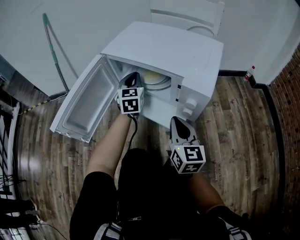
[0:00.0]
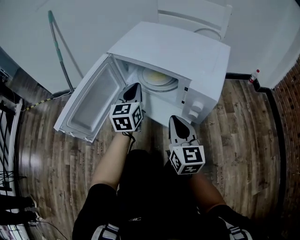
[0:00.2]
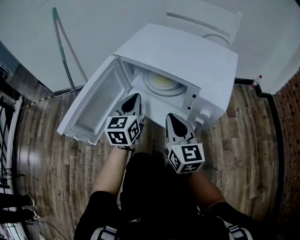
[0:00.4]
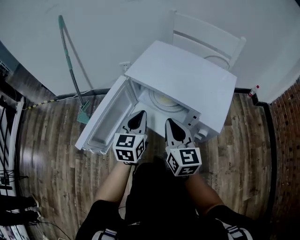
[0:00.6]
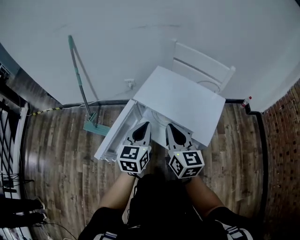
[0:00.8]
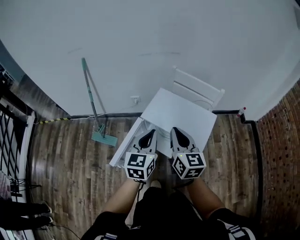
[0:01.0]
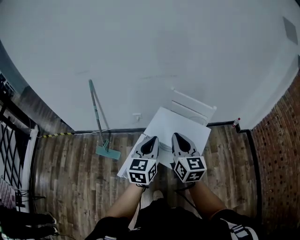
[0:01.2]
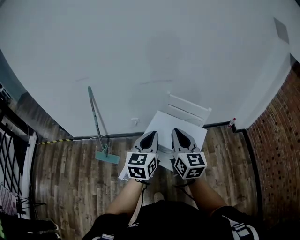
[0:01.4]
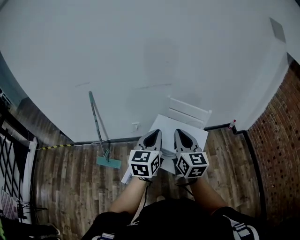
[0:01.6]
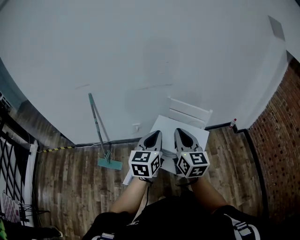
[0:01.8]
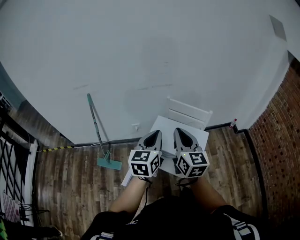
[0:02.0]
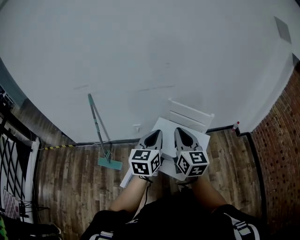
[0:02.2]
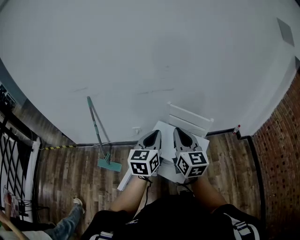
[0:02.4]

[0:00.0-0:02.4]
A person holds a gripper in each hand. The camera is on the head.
0:00.0 to 0:01.2: The right gripper moves upward, approximately 50 cm.
0:01.2 to 0:02.4: The right gripper shifts by approximately 10 cm.

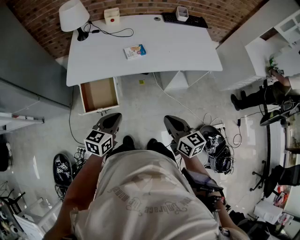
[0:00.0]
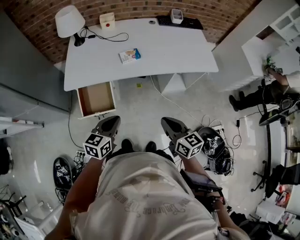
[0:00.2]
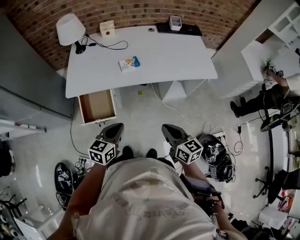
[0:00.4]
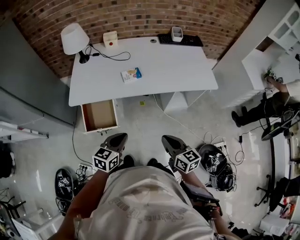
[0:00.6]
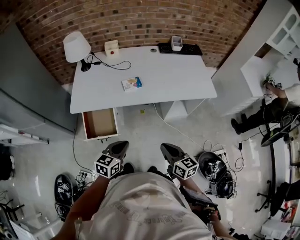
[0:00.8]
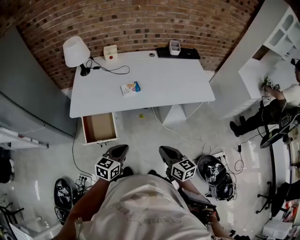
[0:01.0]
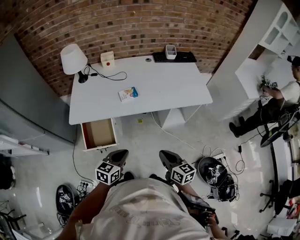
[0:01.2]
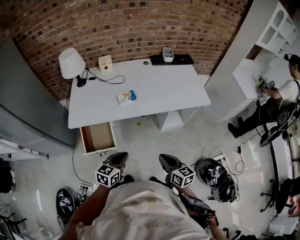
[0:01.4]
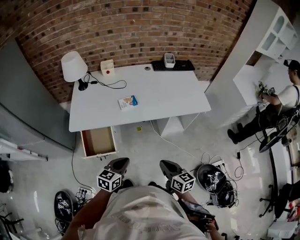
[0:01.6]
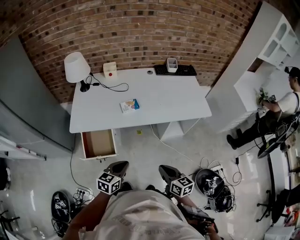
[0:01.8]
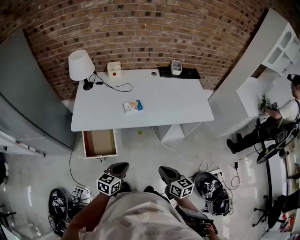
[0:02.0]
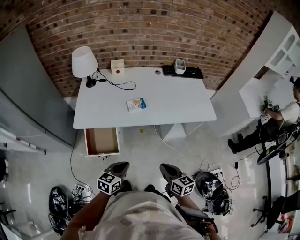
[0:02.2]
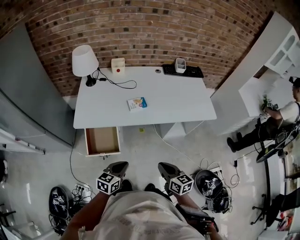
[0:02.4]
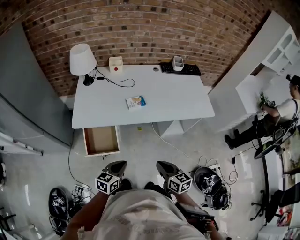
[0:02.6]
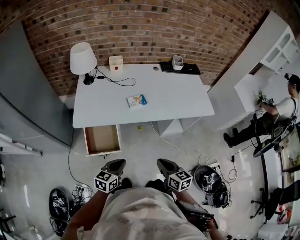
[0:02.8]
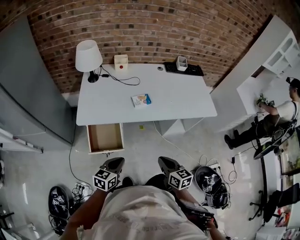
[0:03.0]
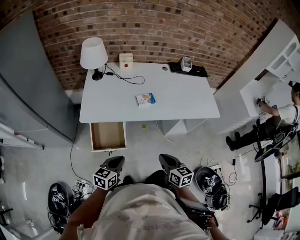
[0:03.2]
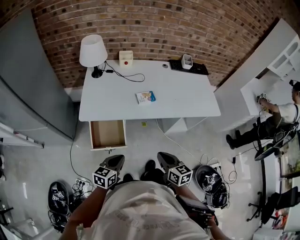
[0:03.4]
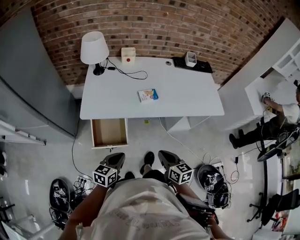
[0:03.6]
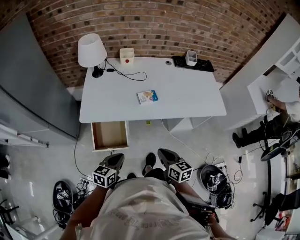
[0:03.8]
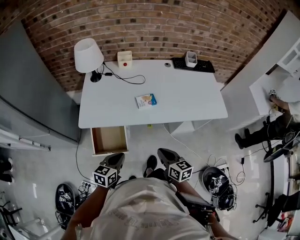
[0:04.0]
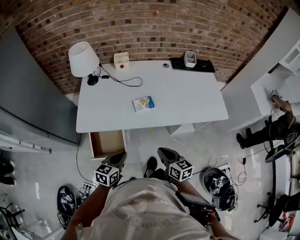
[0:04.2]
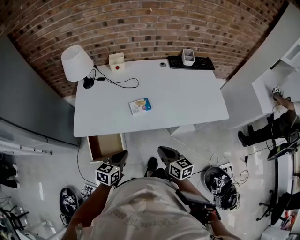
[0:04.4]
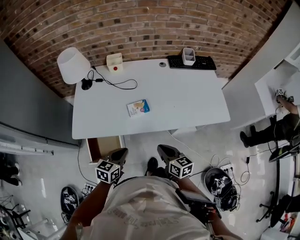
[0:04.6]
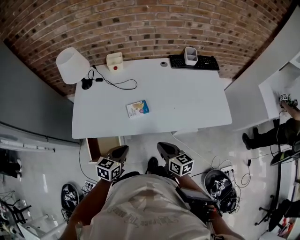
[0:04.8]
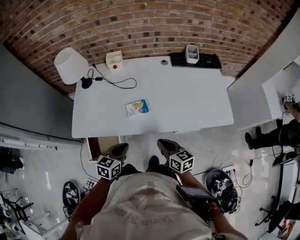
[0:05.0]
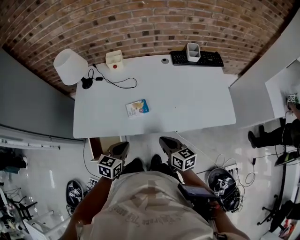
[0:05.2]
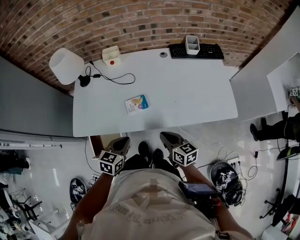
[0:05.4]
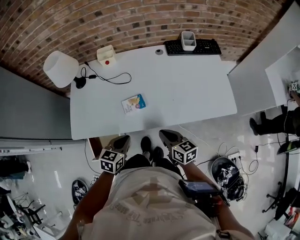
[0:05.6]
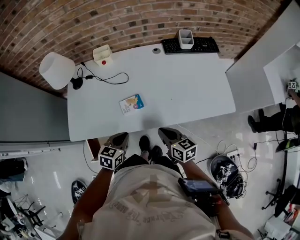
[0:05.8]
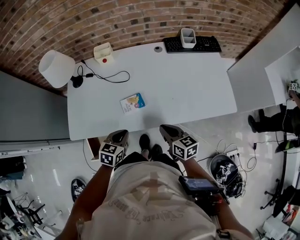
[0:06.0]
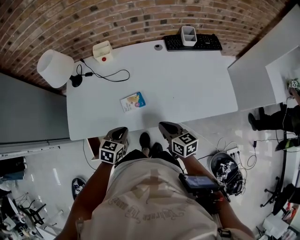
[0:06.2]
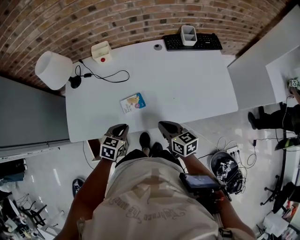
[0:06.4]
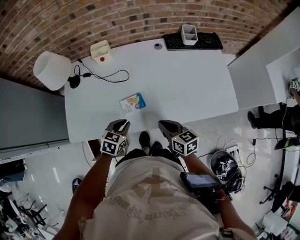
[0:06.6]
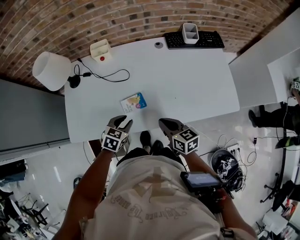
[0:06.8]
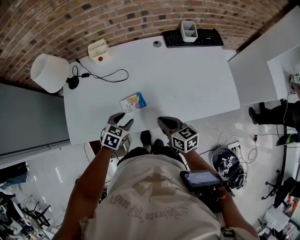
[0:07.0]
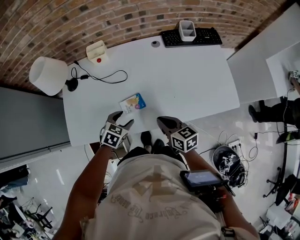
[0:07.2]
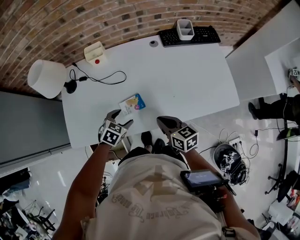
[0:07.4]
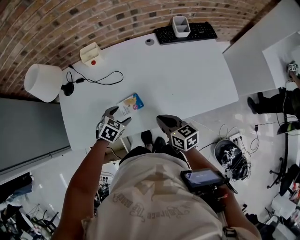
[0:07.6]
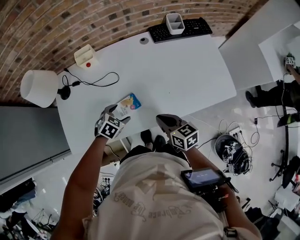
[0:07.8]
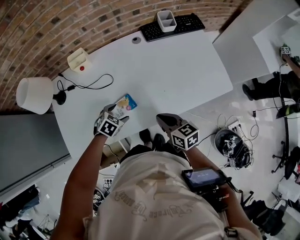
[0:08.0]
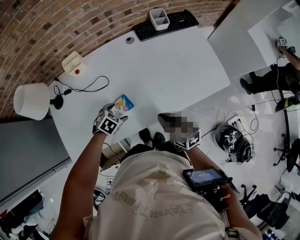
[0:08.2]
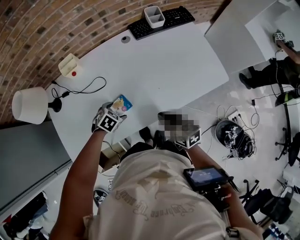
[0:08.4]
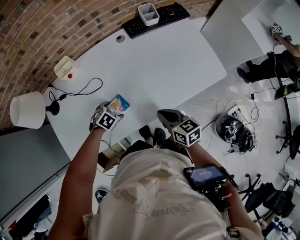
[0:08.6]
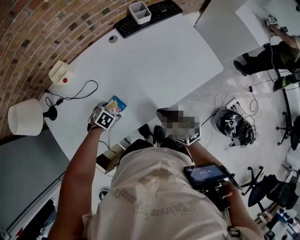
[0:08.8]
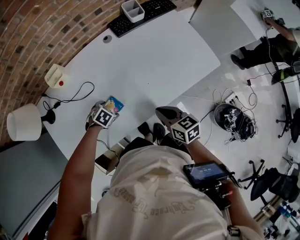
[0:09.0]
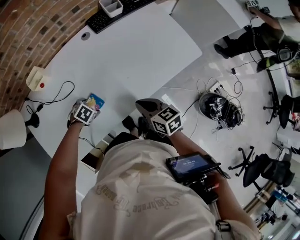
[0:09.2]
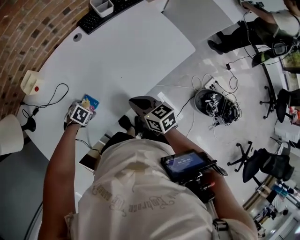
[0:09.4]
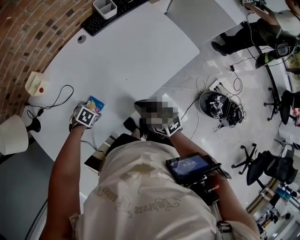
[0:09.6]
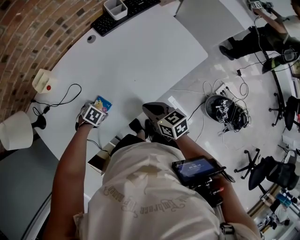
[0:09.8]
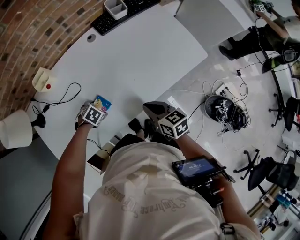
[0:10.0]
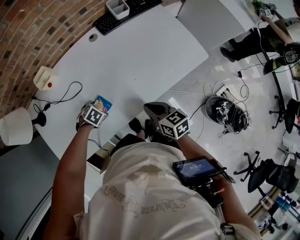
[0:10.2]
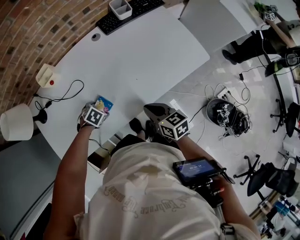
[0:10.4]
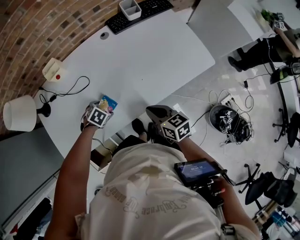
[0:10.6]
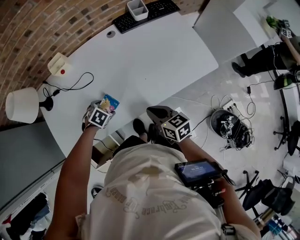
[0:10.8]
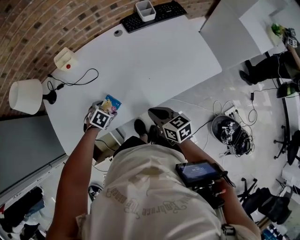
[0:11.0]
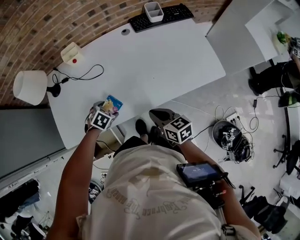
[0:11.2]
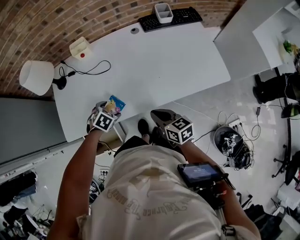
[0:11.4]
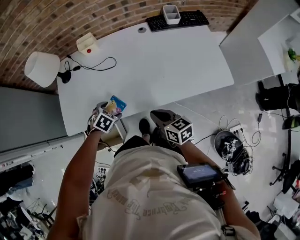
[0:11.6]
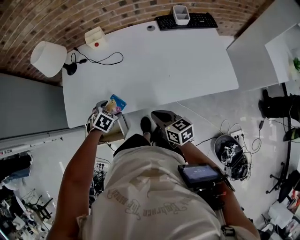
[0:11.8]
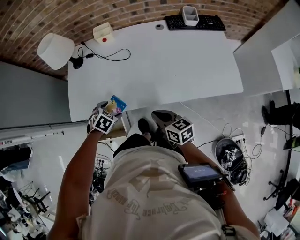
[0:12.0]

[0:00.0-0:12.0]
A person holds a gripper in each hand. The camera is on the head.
0:00.0 to 0:01.6: The right gripper moves to the right, roughly 5 cm. The left gripper travels to the right by roughly 10 cm.
0:01.6 to 0:03.0: Both grippers move to the left, roughly 10 cm.
0:03.0 to 0:04.4: Both grippers move forward, about 15 cm.
0:04.4 to 0:06.0: Both grippers travel together forward and to the right, roughly 15 cm.
0:06.0 to 0:07.6: The left gripper goes some 15 cm forward and downward, changes its angle by some 30 degrees, and opens, while the right gripper travels forward by about 5 cm.
0:07.6 to 0:09.0: The right gripper ends up approximately 10 cm from where it was. Meanwhile the left gripper shifts roughly 10 cm downward, and rotates some 30 degrees.
0:09.0 to 0:10.4: The grippers move only a little.
0:10.4 to 0:12.0: The right gripper shifts by about 15 cm, and changes its angle by about 30 degrees. Meanwhile the left gripper ends up roughly 20 cm from where it was, and swivels about 30 degrees.

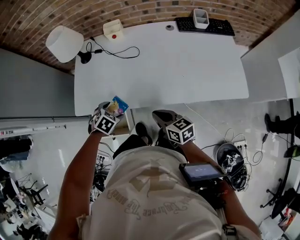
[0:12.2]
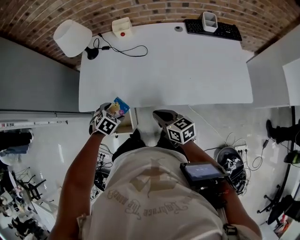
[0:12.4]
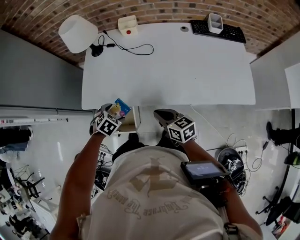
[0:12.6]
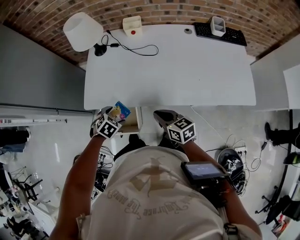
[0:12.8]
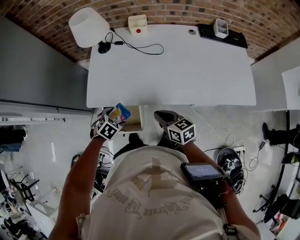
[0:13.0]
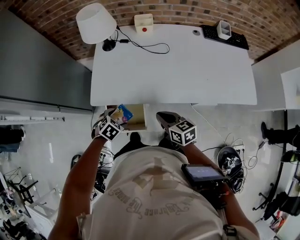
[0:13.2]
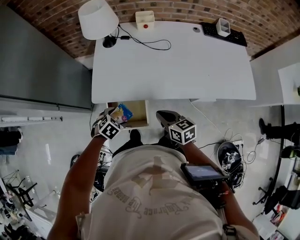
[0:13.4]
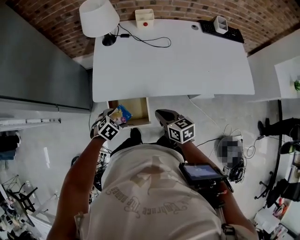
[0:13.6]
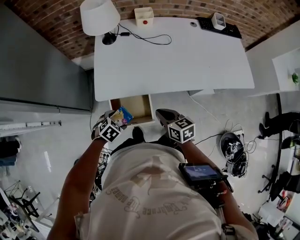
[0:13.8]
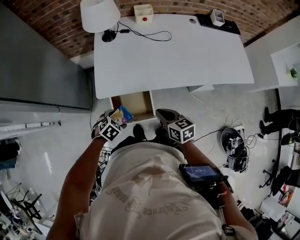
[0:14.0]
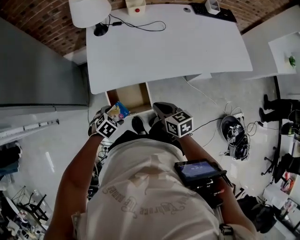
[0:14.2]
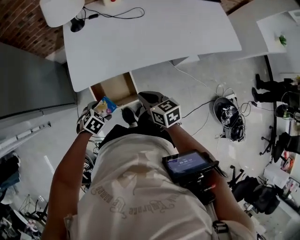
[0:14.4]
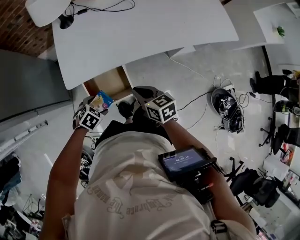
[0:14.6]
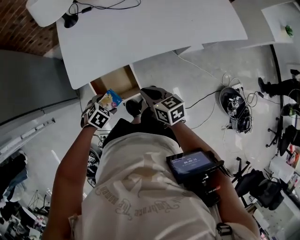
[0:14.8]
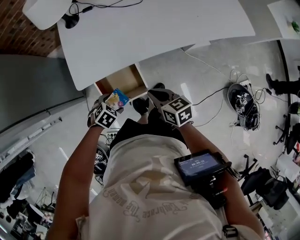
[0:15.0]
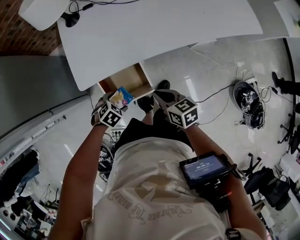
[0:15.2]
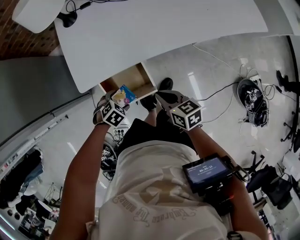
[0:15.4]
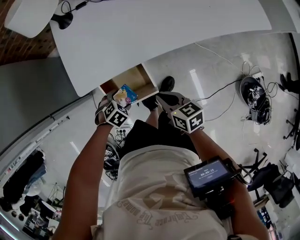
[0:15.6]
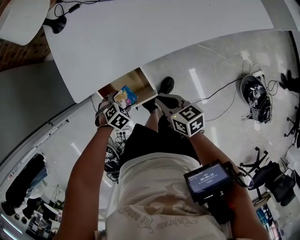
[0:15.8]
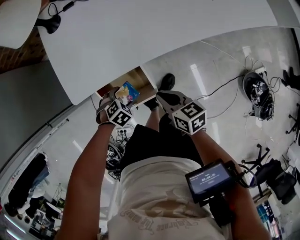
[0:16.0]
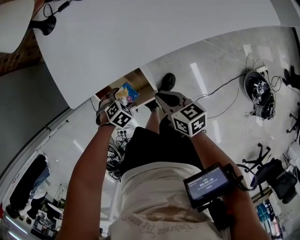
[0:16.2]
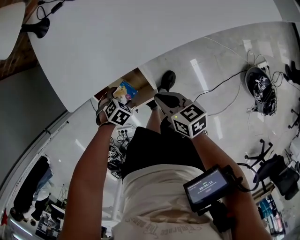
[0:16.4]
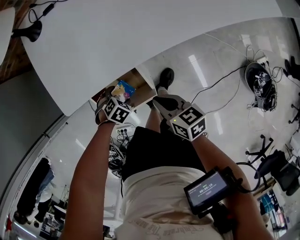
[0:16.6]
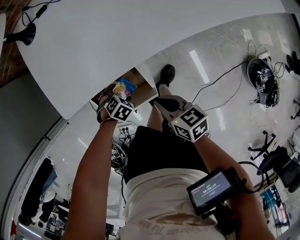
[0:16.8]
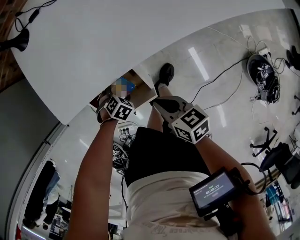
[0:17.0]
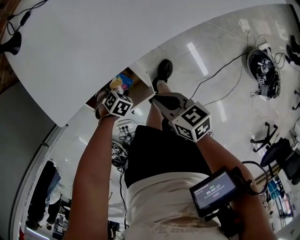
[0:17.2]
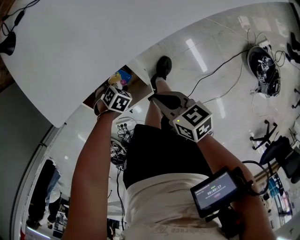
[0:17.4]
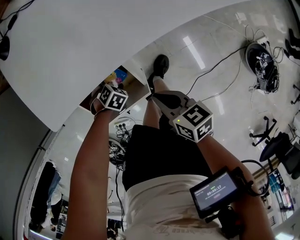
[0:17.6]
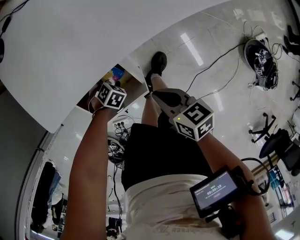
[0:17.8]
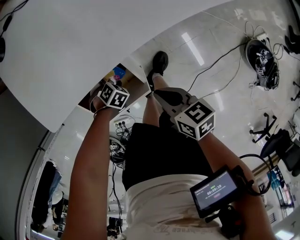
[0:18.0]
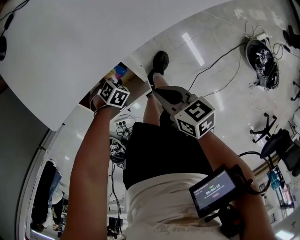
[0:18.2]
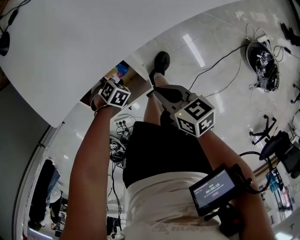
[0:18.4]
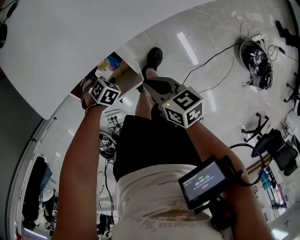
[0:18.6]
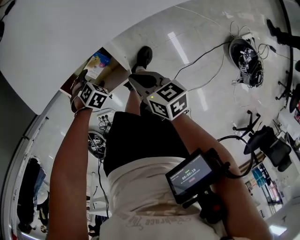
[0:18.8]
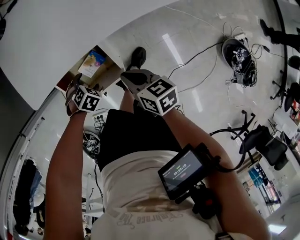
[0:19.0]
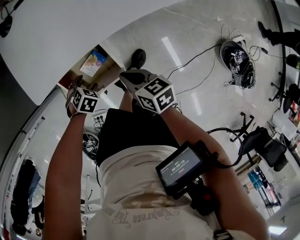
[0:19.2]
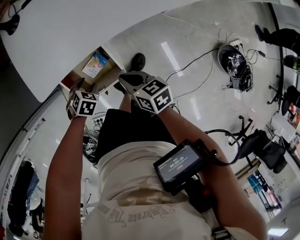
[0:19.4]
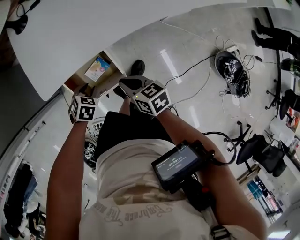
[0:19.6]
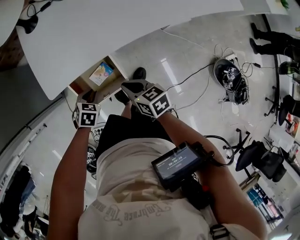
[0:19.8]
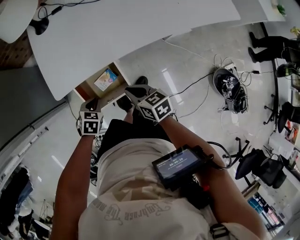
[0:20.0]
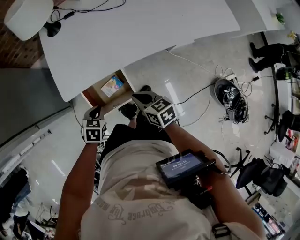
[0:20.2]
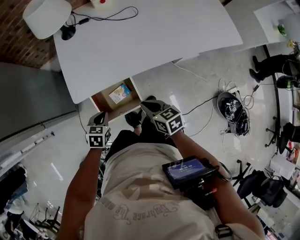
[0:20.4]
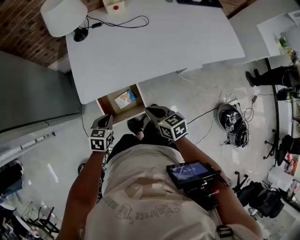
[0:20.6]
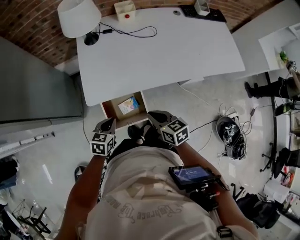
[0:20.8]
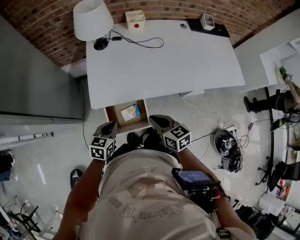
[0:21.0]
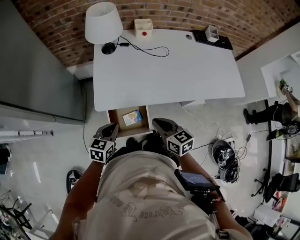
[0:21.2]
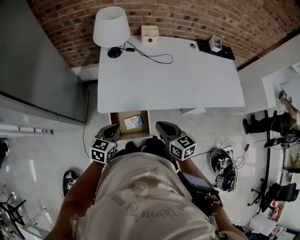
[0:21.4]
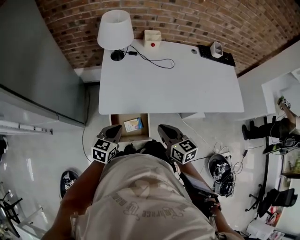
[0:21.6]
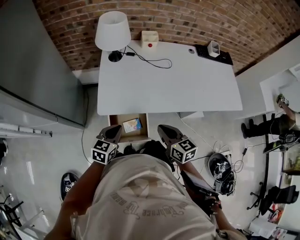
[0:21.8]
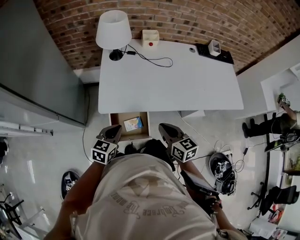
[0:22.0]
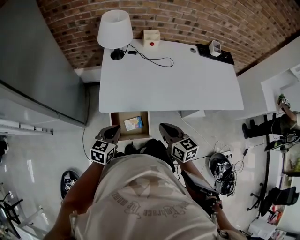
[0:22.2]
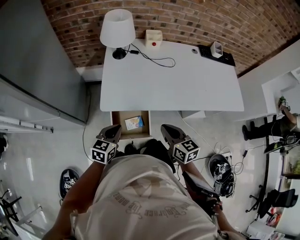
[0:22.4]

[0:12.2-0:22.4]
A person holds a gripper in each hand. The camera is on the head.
0:12.2 to 0:13.6: Both grippers travel together to the left, about 20 cm.
0:13.6 to 0:15.2: The grippers both shift downward by some 10 cm.
0:15.2 to 0:16.6: Both grippers travel together downward, about 15 cm.
0:16.6 to 0:18.0: The left gripper heads downward, covering about 10 cm, while the right gripper is displaced downward by approximately 5 cm.
0:18.0 to 0:19.4: The left gripper moves upward, roughly 15 cm, and closes up. Meanwhile the right gripper goes about 5 cm upward.
0:19.4 to 0:21.0: Both grippers travel together upward, approximately 20 cm. The right gripper turns by some 20 degrees. Meanwhile the left gripper points its fingers about 40 degrees further upward, and closes.
0:21.0 to 0:22.4: The grippers both shift upward by roughly 5 cm.
